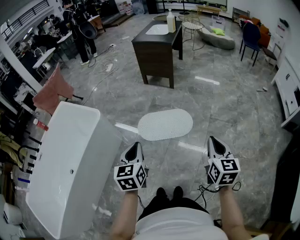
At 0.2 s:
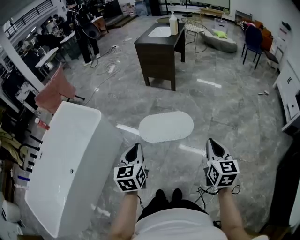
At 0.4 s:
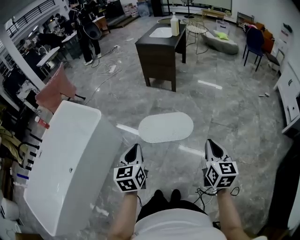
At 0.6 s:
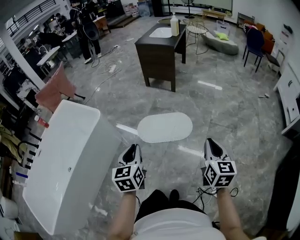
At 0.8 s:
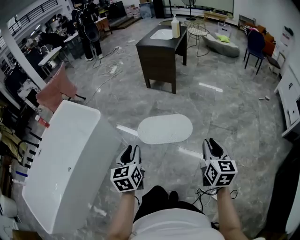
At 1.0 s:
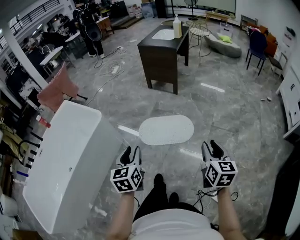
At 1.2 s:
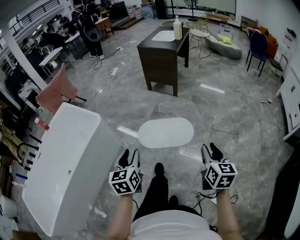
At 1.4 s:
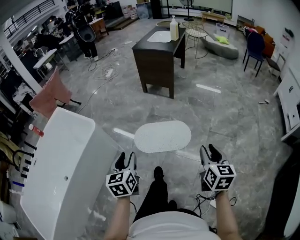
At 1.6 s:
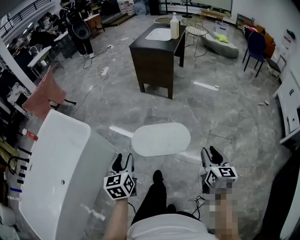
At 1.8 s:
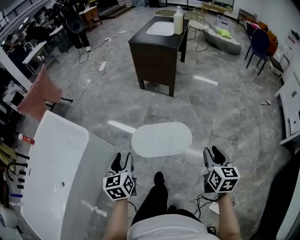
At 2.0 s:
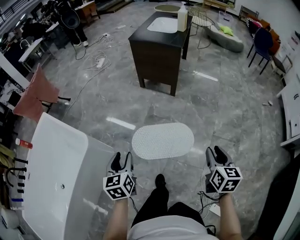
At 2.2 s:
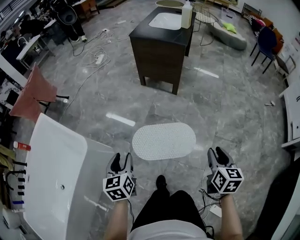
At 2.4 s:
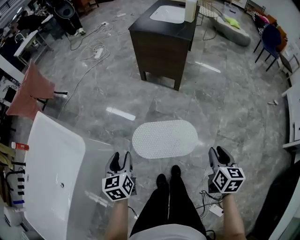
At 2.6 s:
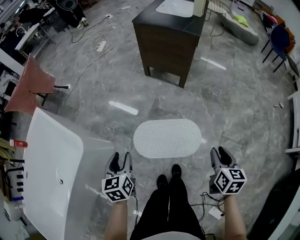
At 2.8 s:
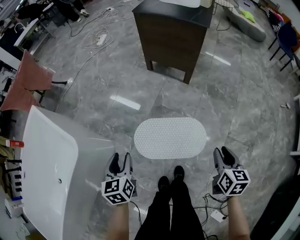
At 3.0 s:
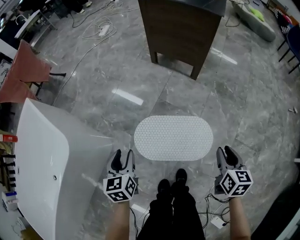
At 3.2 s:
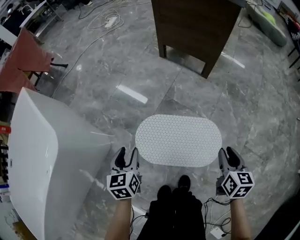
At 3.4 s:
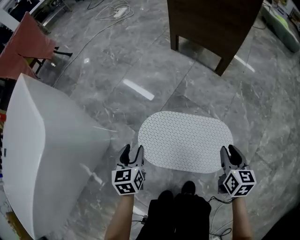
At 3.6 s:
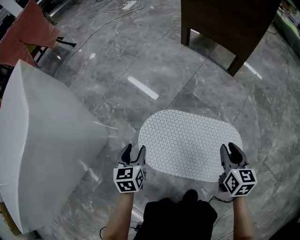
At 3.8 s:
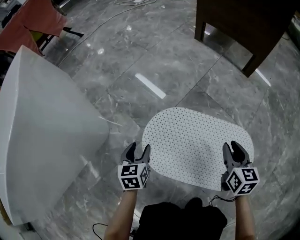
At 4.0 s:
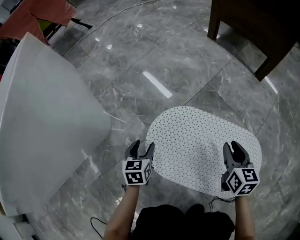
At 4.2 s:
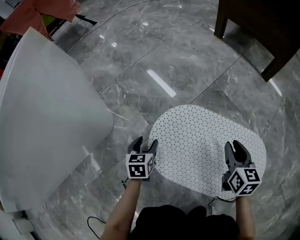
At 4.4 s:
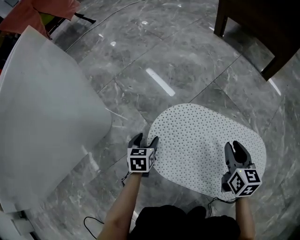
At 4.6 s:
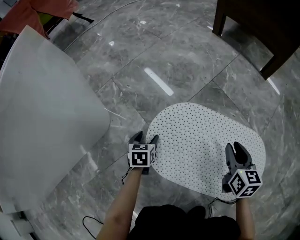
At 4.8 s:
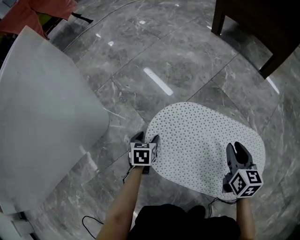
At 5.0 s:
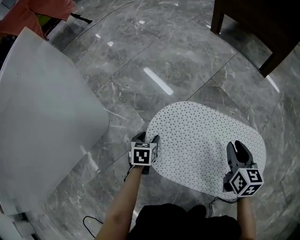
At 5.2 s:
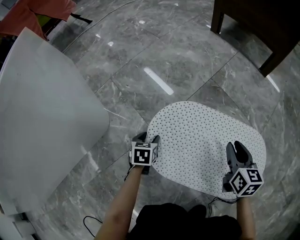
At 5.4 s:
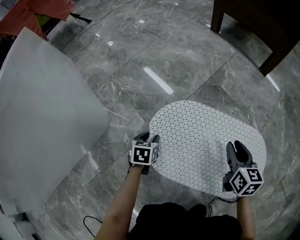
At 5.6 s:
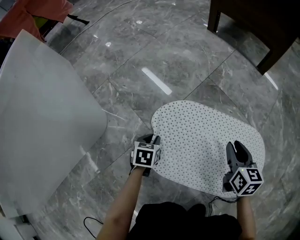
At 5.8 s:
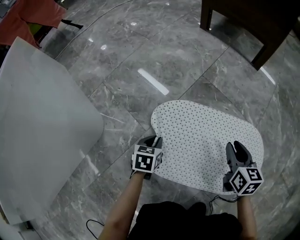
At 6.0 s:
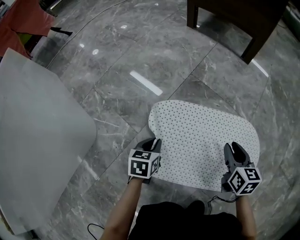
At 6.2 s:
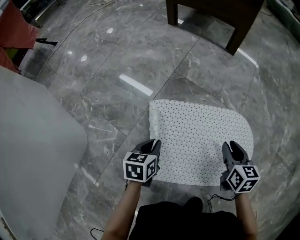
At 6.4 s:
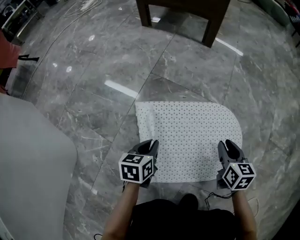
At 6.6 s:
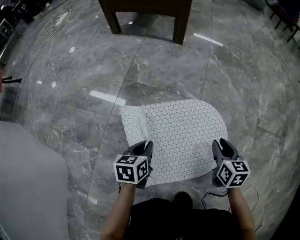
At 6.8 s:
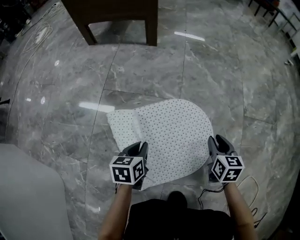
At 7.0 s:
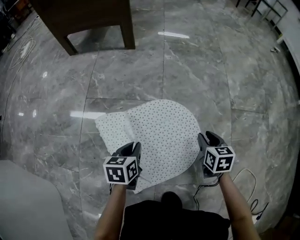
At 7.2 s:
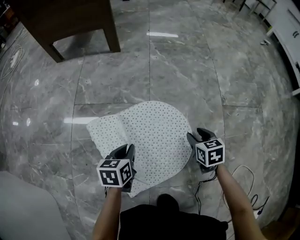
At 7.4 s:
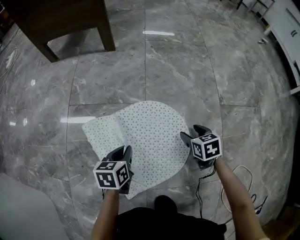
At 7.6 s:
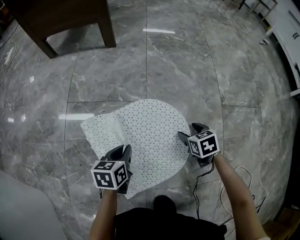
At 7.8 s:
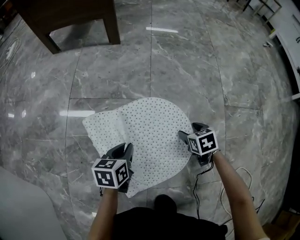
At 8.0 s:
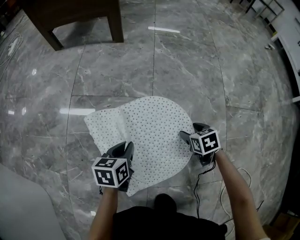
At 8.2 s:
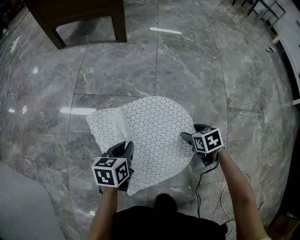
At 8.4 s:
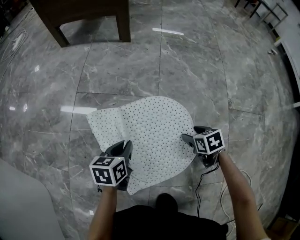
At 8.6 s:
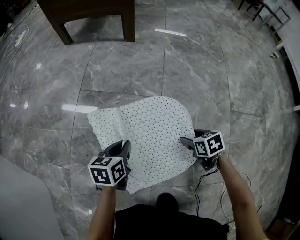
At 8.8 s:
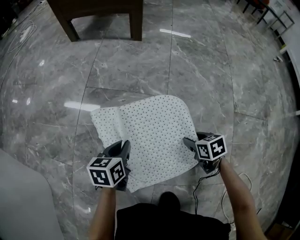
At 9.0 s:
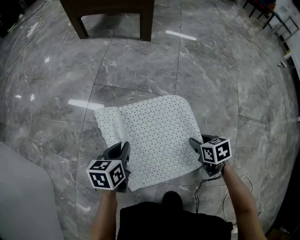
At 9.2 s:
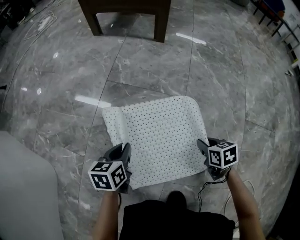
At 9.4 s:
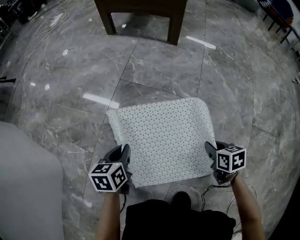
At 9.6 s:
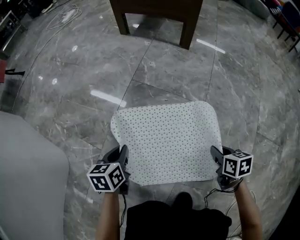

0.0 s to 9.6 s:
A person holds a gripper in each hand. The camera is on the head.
0.0 to 1.6 s: The right gripper is displaced forward by about 15 cm, and opens. The left gripper travels forward and downward by roughly 15 cm, and opens up.
1.6 to 3.2 s: Both grippers travel together downward and forward, about 50 cm.
3.2 to 4.8 s: Both grippers move downward, roughly 40 cm.
4.8 to 6.4 s: The left gripper changes place by roughly 25 cm, changes its angle by some 30 degrees, and closes its fingers, while the right gripper moves about 15 cm, and turns by some 20 degrees.
6.4 to 8.0 s: The right gripper goes approximately 20 cm to the right and downward, changes its angle by about 30 degrees, and opens. Meanwhile the left gripper goes roughly 15 cm to the right and forward, and changes its angle by about 20 degrees.
8.0 to 9.6 s: The left gripper ends up some 25 cm from where it was, and rotates some 30 degrees. Meanwhile the right gripper shifts by about 15 cm, and closes up.

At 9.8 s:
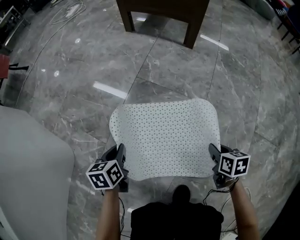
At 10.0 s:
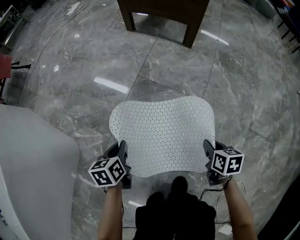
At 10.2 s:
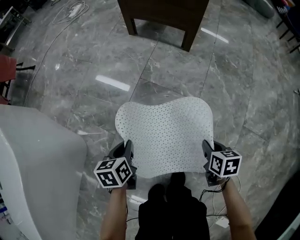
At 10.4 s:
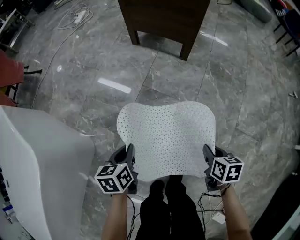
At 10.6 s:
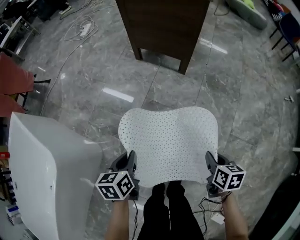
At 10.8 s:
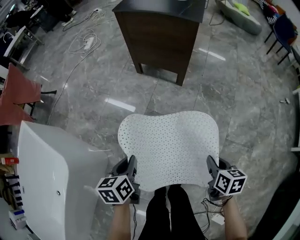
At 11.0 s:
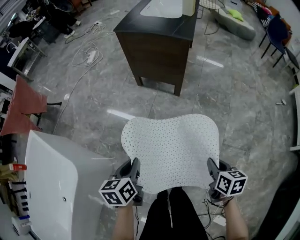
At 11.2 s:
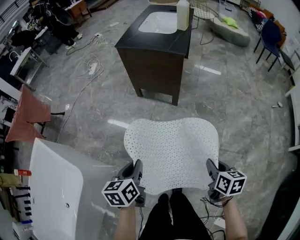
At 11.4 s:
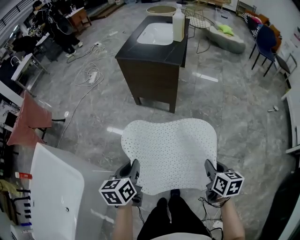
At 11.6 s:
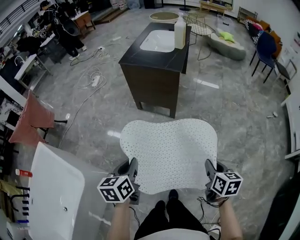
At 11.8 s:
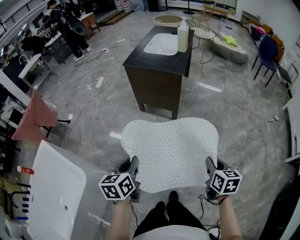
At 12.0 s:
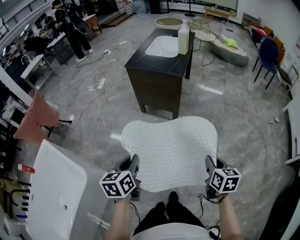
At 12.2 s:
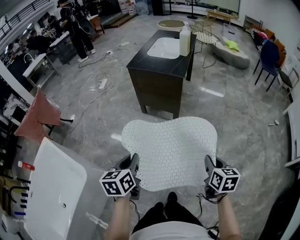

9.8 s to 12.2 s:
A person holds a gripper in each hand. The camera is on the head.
9.8 to 11.0 s: Both grippers move upward, roughly 60 cm.
11.0 to 12.2 s: Both grippers move upward, approximately 15 cm.

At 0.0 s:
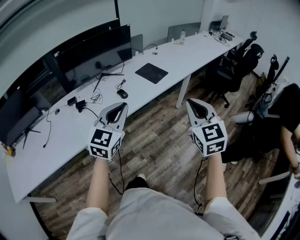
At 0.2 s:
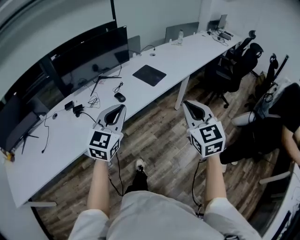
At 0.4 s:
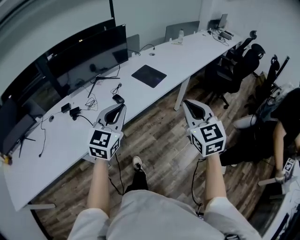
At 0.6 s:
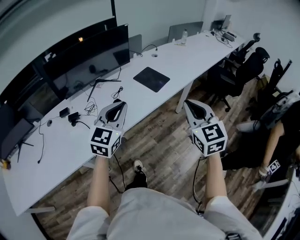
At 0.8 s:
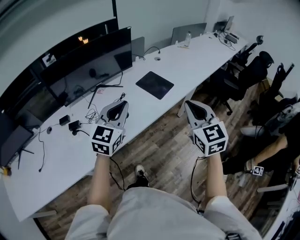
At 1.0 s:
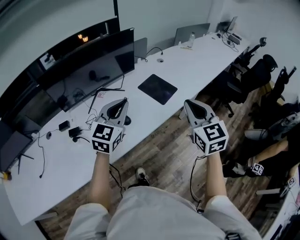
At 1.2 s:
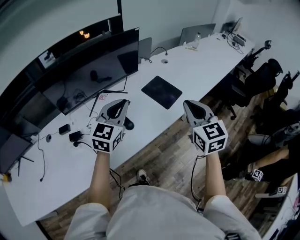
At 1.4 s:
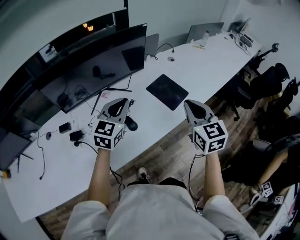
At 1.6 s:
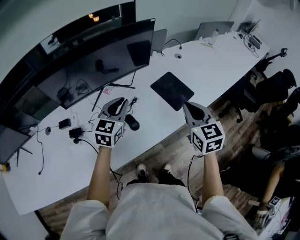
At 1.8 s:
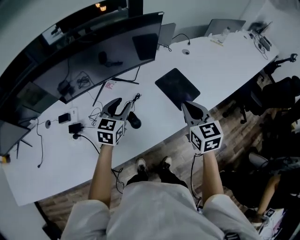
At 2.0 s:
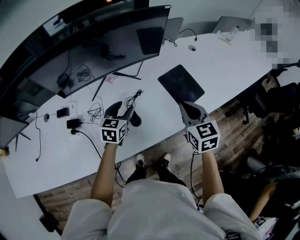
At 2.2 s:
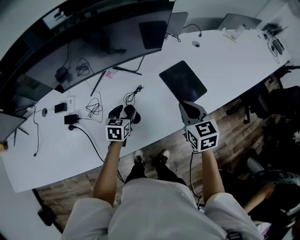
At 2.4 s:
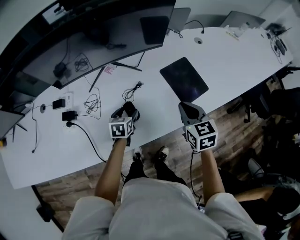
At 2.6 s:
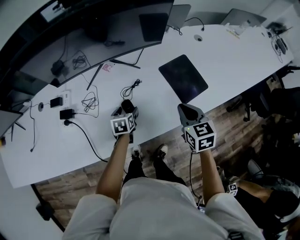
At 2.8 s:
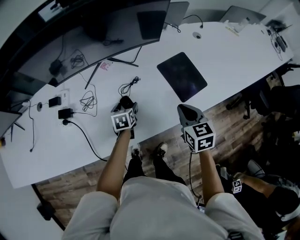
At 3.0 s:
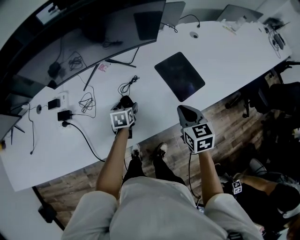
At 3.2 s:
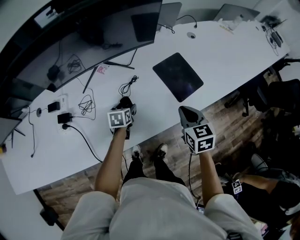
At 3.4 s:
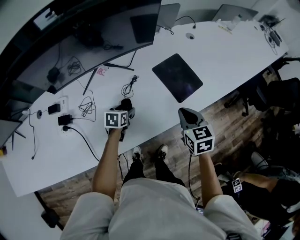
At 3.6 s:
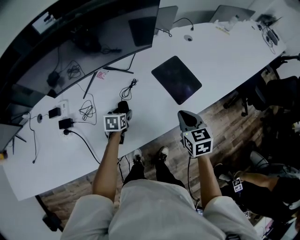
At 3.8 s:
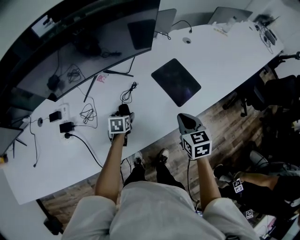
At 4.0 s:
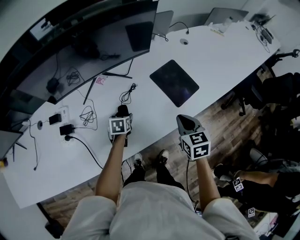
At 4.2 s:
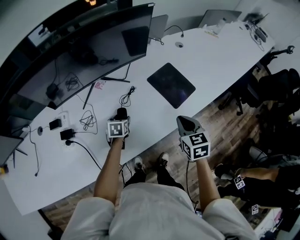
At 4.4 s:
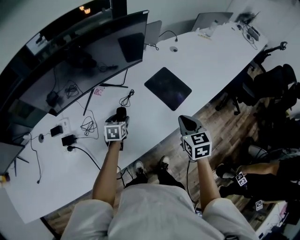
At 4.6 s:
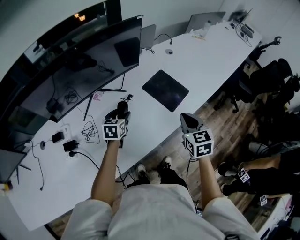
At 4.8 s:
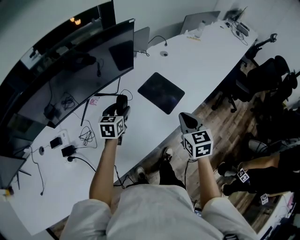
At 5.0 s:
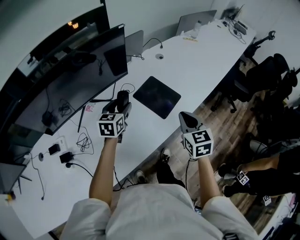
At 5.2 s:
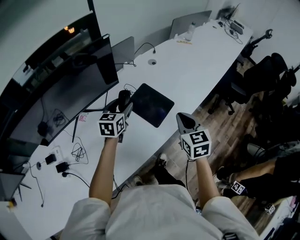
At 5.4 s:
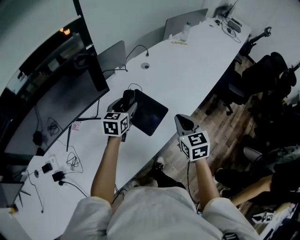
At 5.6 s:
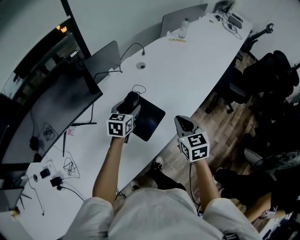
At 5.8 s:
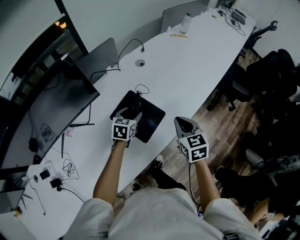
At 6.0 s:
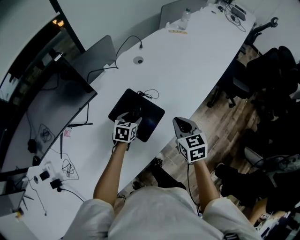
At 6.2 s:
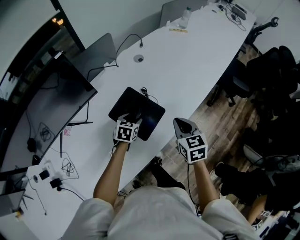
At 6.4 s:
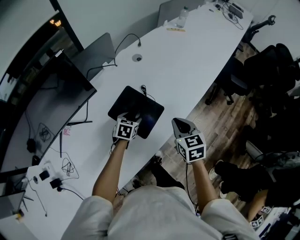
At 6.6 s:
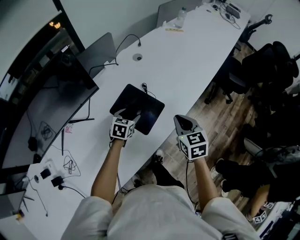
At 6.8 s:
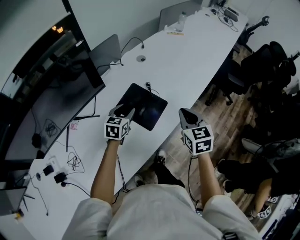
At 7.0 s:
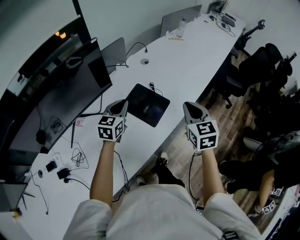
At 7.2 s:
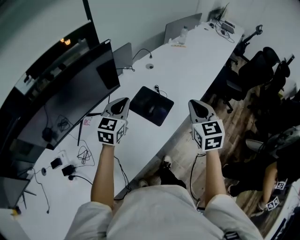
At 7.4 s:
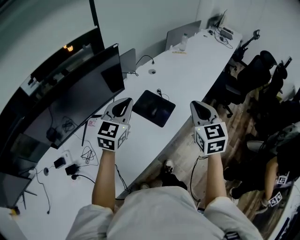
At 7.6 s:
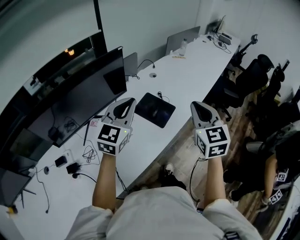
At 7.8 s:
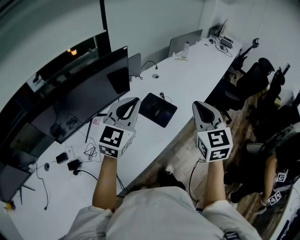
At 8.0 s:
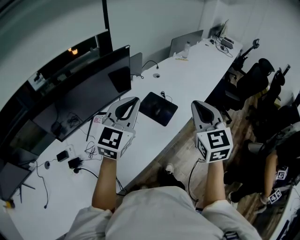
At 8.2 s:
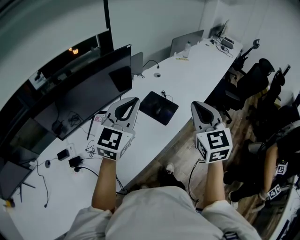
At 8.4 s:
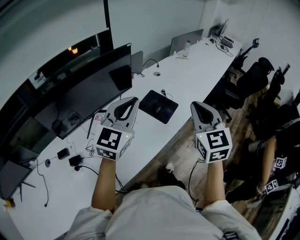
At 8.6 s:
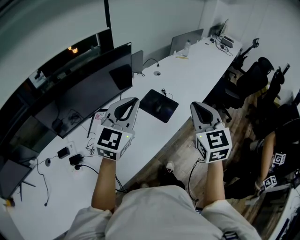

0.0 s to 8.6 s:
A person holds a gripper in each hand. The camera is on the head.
0.0 to 1.4 s: The pair of grippers is taken forward, roughly 40 cm.
1.4 to 2.8 s: The left gripper goes about 35 cm downward, angles its fingers downward, by roughly 40 degrees, and opens its fingers; the right gripper shifts approximately 25 cm downward and forward, and rotates approximately 30 degrees.
2.8 to 4.4 s: The left gripper rotates about 20 degrees. Meanwhile the right gripper shifts by approximately 5 cm.
4.4 to 5.8 s: The right gripper shifts roughly 25 cm forward and to the right. Meanwhile the left gripper heads to the right and forward, covering roughly 35 cm, and swivels about 20 degrees.
5.8 to 7.2 s: The left gripper moves upward, backward and to the left, about 30 cm, changes its angle by about 30 degrees, and closes its fingers, while the right gripper goes roughly 20 cm upward and backward.
7.2 to 8.6 s: The left gripper travels backward and upward by about 25 cm. Meanwhile the right gripper moves backward, upward and to the left, roughly 20 cm.

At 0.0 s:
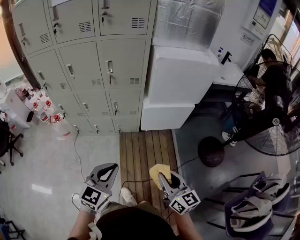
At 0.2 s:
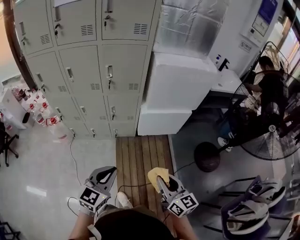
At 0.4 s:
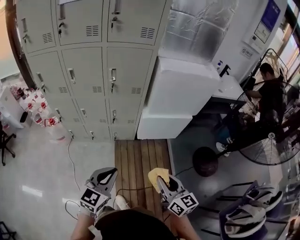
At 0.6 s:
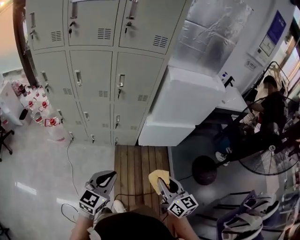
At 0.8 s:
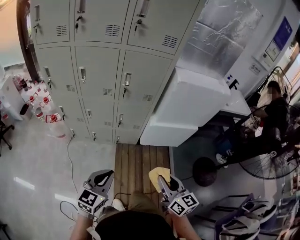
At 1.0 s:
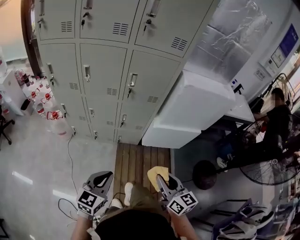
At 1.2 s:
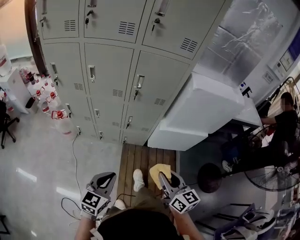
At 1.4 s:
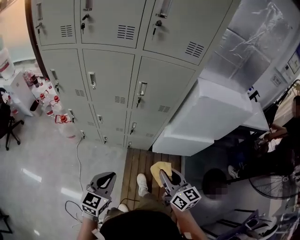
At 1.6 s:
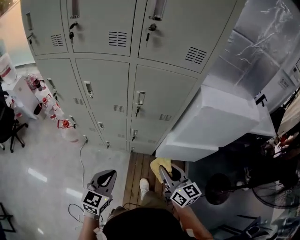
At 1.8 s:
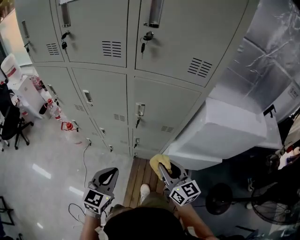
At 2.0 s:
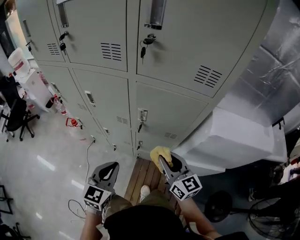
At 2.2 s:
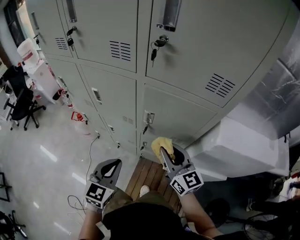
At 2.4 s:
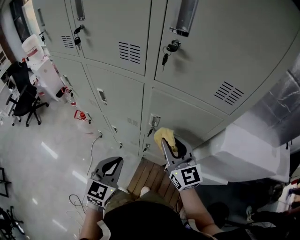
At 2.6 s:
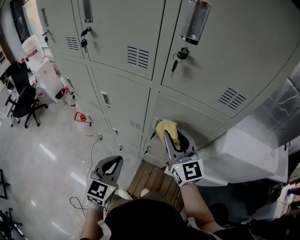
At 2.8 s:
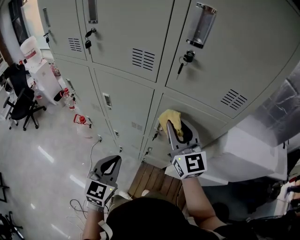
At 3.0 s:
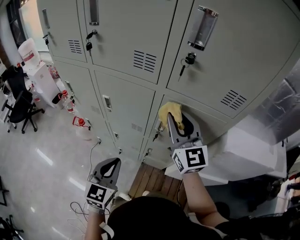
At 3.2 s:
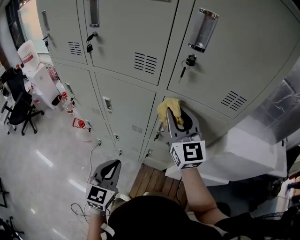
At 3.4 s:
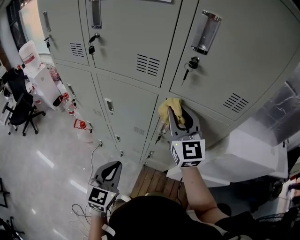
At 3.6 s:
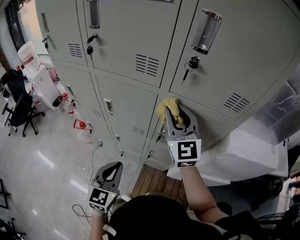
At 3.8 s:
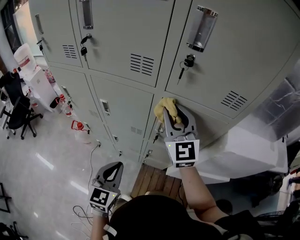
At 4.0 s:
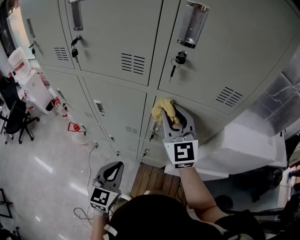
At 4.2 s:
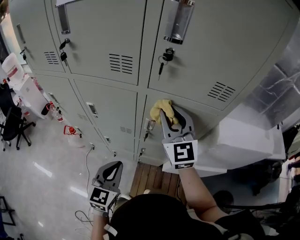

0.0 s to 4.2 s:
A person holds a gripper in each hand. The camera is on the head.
0.0 to 1.4 s: The left gripper is displaced forward, to the left and downward by about 25 cm. Meanwhile the right gripper travels forward and to the left by approximately 30 cm.
1.4 to 2.8 s: The left gripper moves forward, roughly 25 cm, and turns by about 20 degrees; the right gripper travels forward and upward by some 40 cm, and changes its angle by about 30 degrees.
